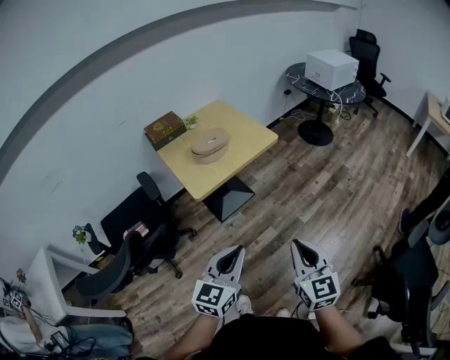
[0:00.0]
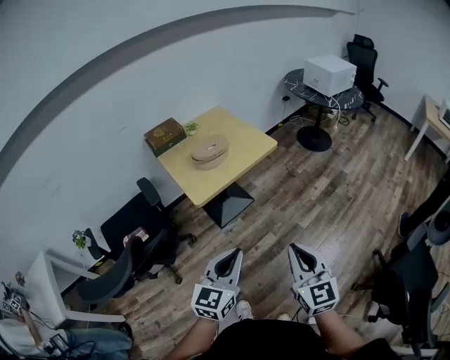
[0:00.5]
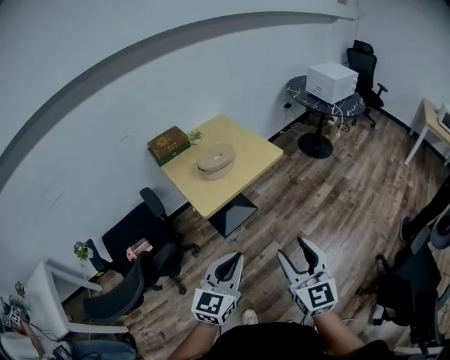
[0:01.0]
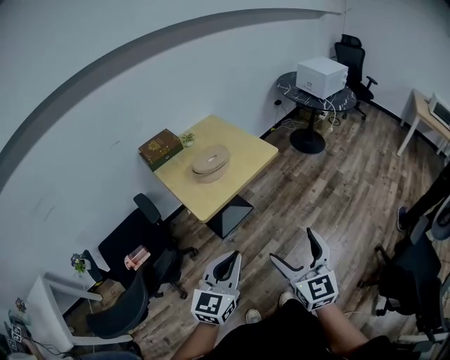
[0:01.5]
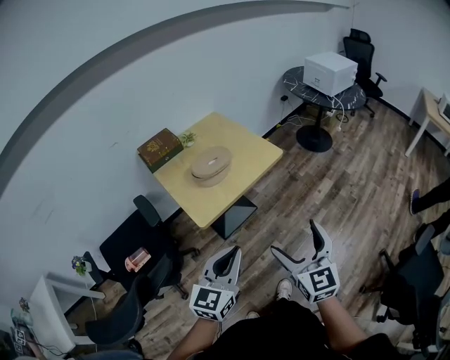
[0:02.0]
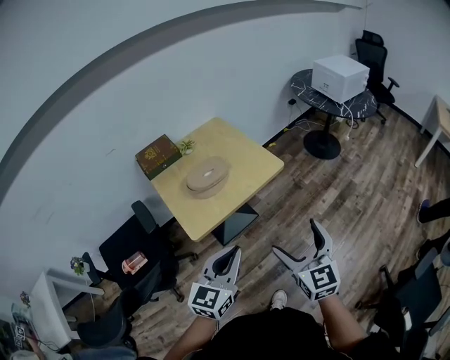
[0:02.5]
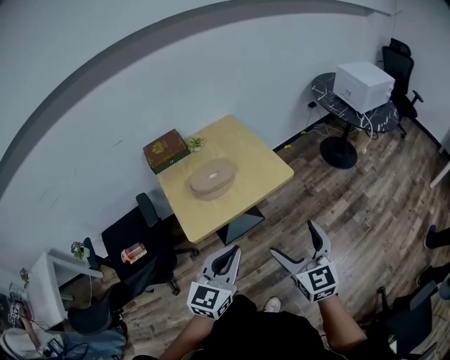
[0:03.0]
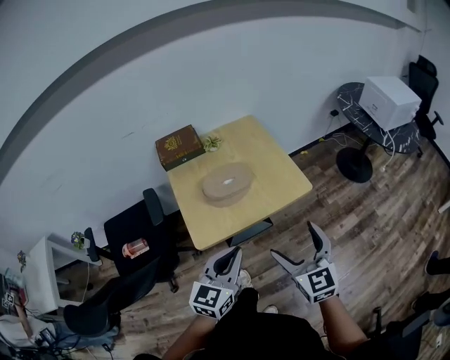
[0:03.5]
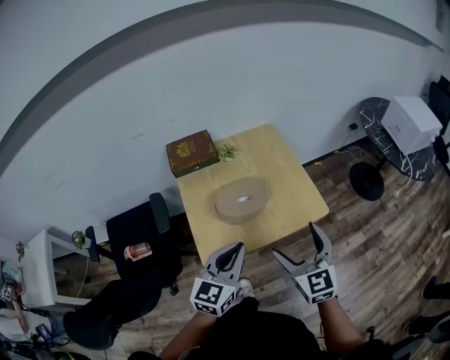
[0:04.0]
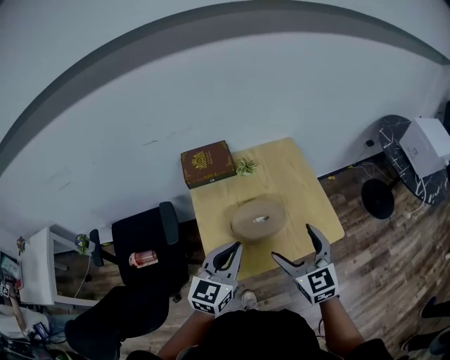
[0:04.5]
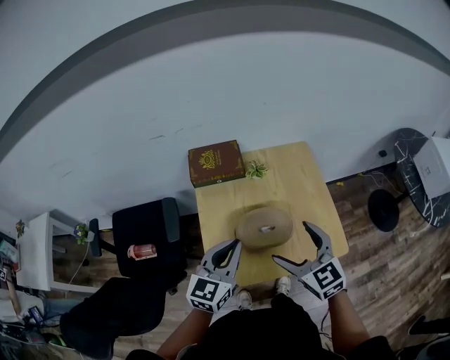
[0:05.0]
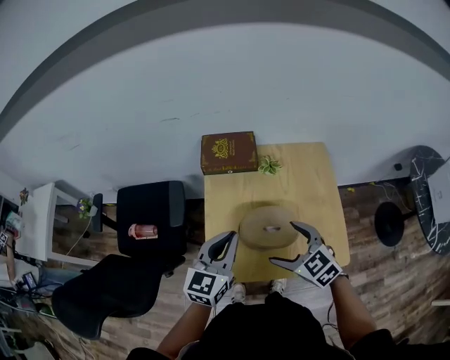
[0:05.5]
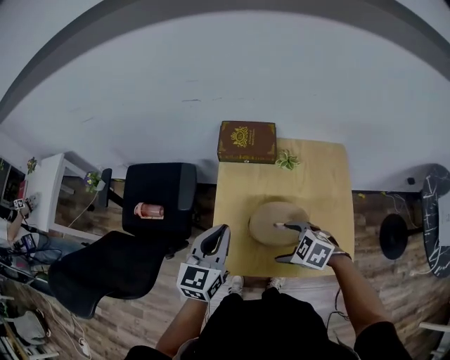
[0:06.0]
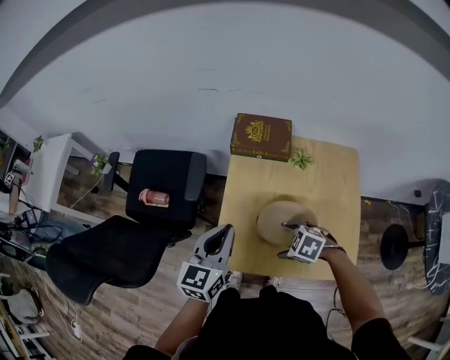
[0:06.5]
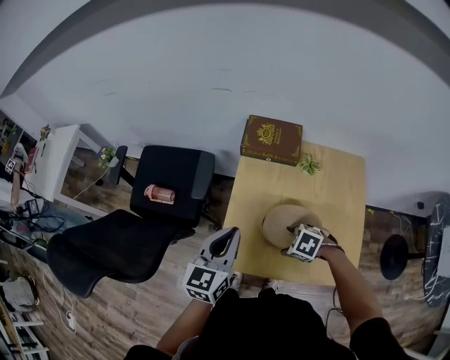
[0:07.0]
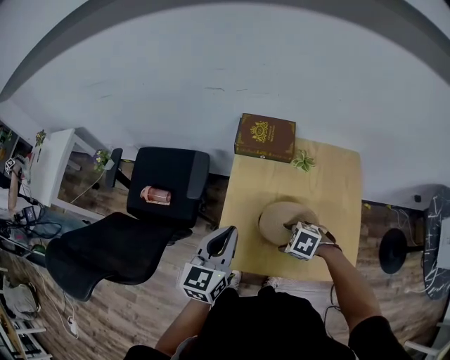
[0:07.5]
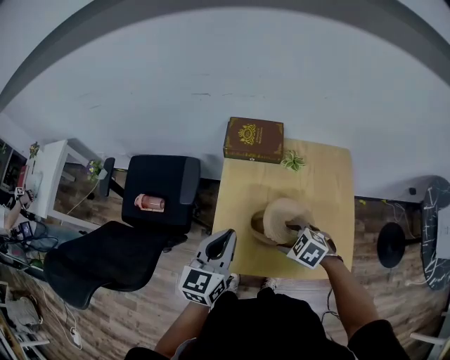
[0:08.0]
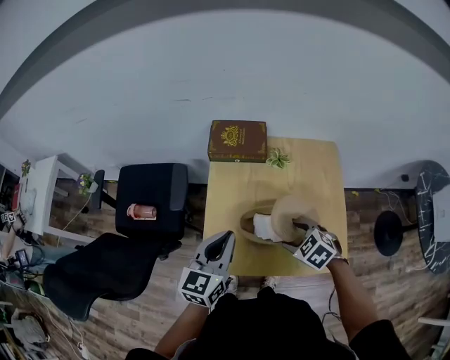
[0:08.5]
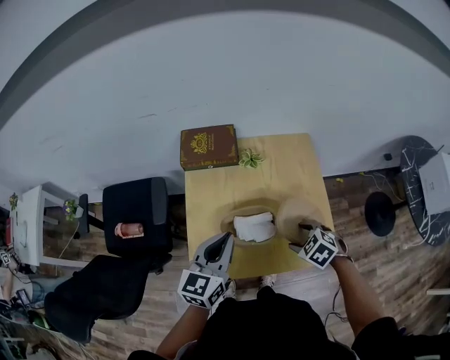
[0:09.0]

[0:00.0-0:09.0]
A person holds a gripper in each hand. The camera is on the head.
0:00.0 to 0:02.0: The two grippers go approximately 15 cm forward and to the left. The right gripper opens.
0:02.0 to 0:04.5: The right gripper shifts by roughly 40 cm, and rotates roughly 30 degrees, while the left gripper moves some 35 cm, and swivels some 20 degrees.
0:04.5 to 0:07.0: The left gripper ends up some 10 cm from where it was, and rotates roughly 30 degrees. Meanwhile the right gripper heads downward, covering some 20 cm, and tilts its fingers roughly 60 degrees downward.
0:07.0 to 0:09.0: The right gripper changes place by roughly 15 cm, and swivels about 30 degrees. The left gripper ends up about 10 cm from where it was.

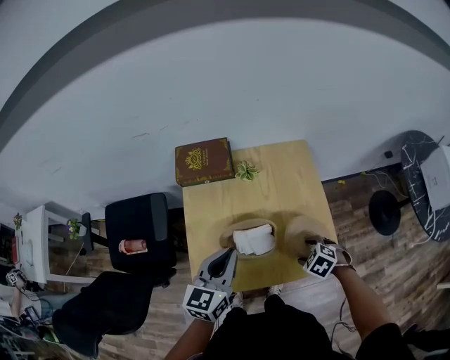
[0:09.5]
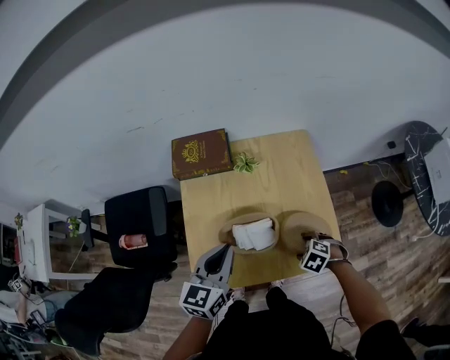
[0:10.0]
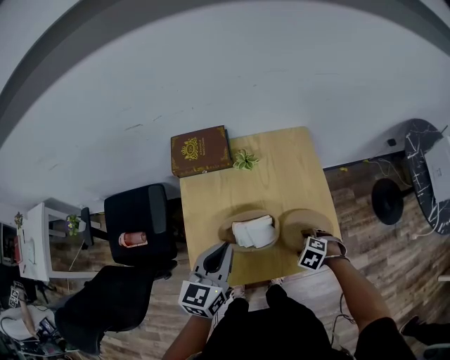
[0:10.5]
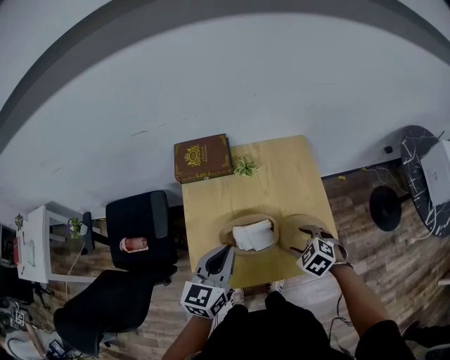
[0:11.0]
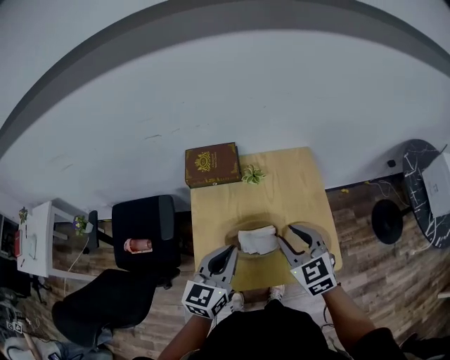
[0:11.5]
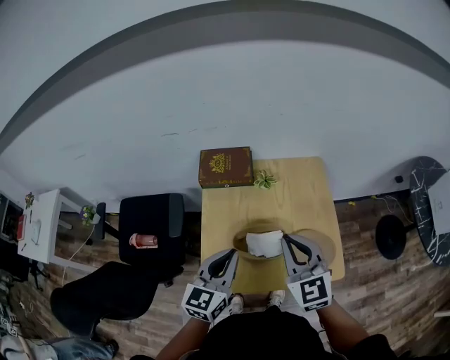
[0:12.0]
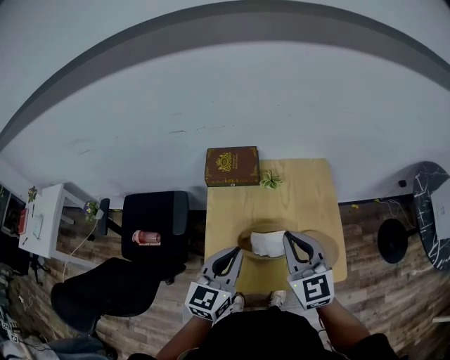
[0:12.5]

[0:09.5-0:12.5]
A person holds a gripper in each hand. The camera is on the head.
0:09.5 to 0:11.0: The right gripper moves some 5 cm.
0:11.0 to 0:12.5: The left gripper goes some 5 cm upward, while the right gripper goes some 25 cm upward and to the left, tilts its fingers approximately 50 degrees upward, and closes.

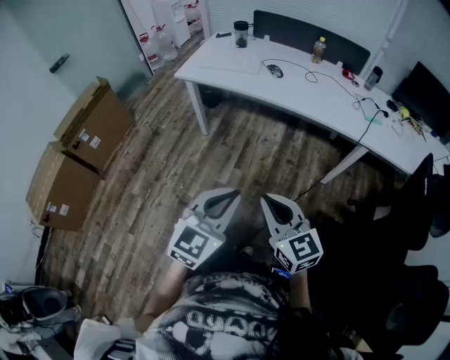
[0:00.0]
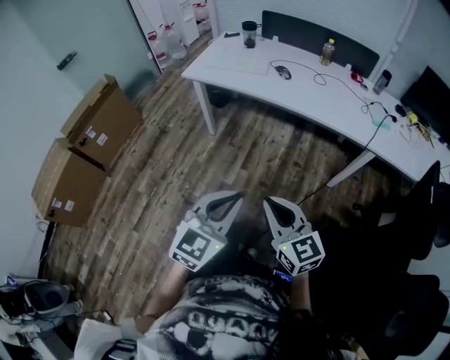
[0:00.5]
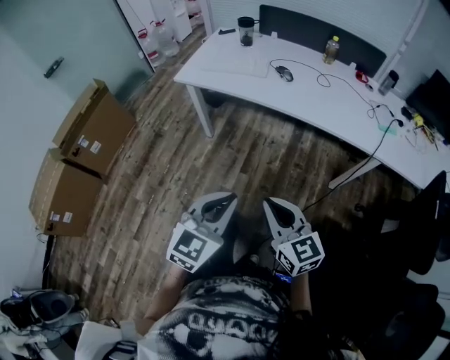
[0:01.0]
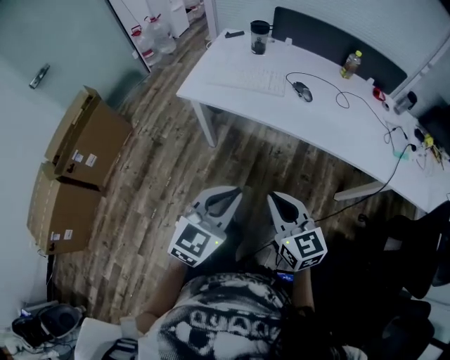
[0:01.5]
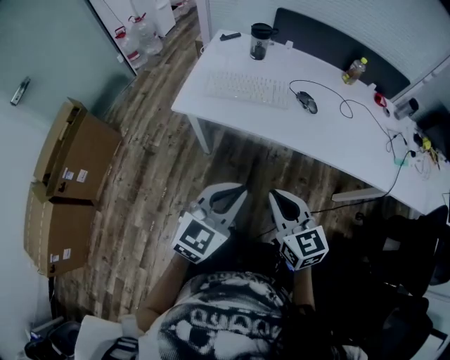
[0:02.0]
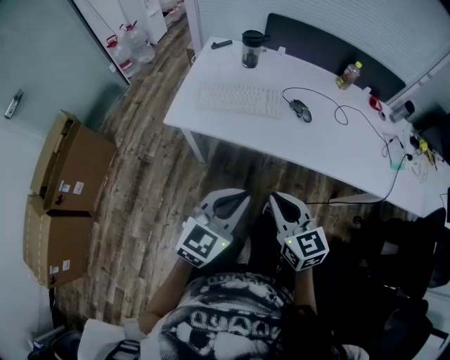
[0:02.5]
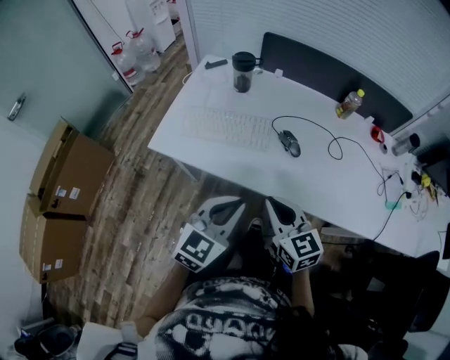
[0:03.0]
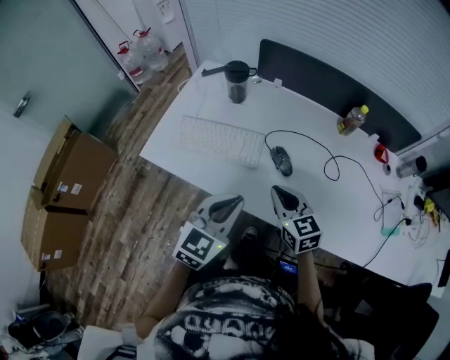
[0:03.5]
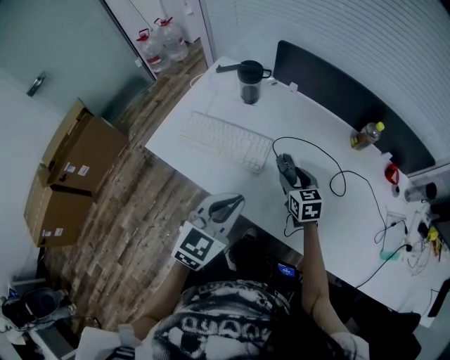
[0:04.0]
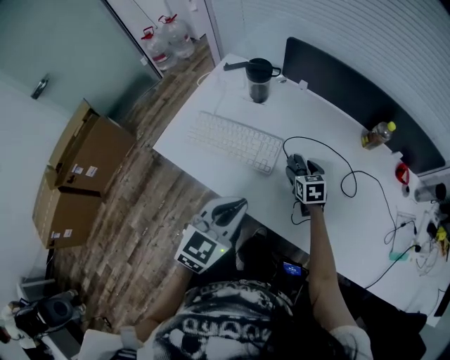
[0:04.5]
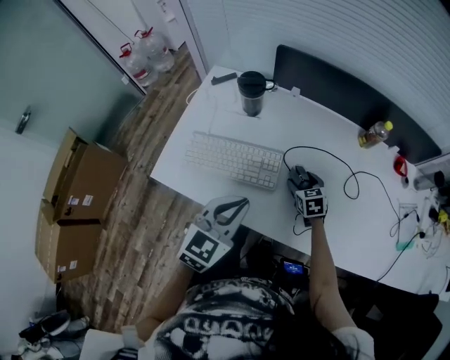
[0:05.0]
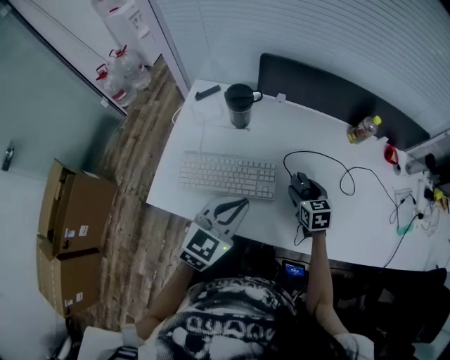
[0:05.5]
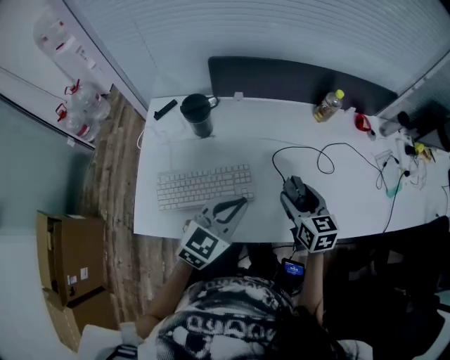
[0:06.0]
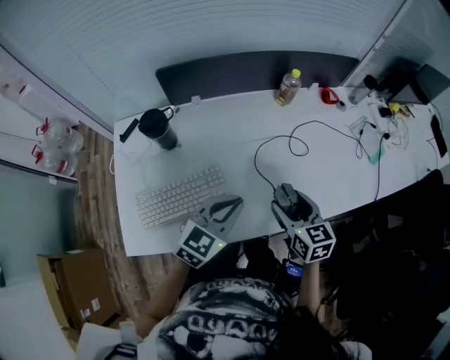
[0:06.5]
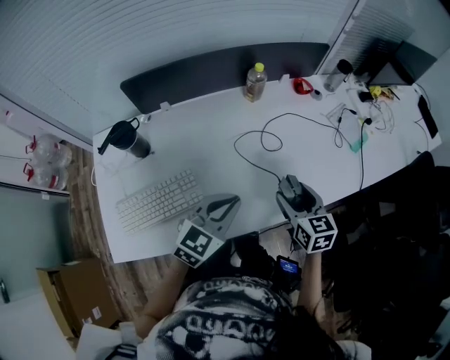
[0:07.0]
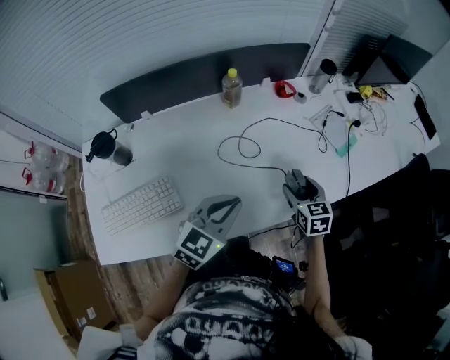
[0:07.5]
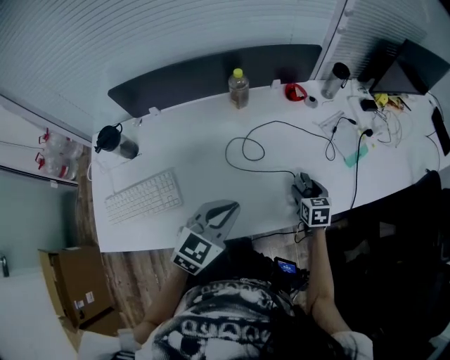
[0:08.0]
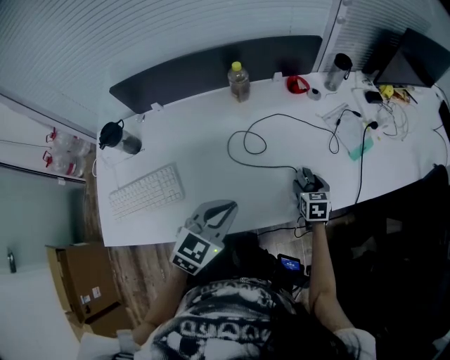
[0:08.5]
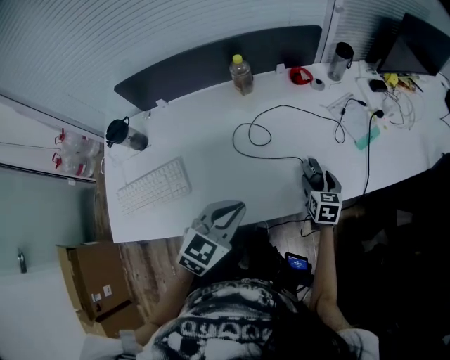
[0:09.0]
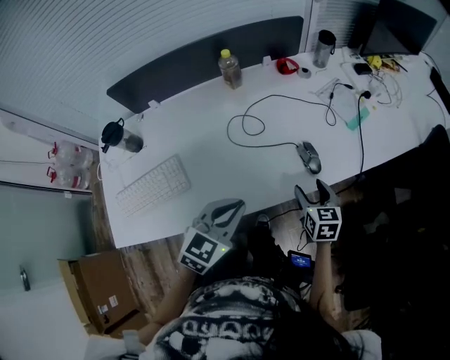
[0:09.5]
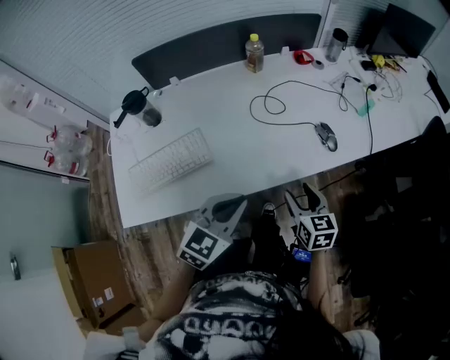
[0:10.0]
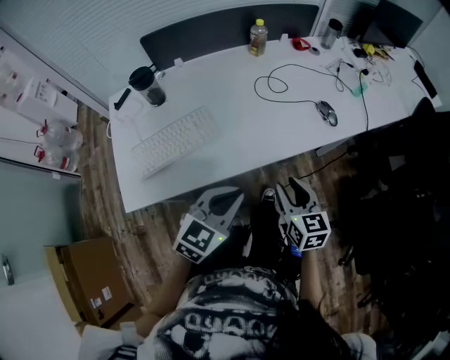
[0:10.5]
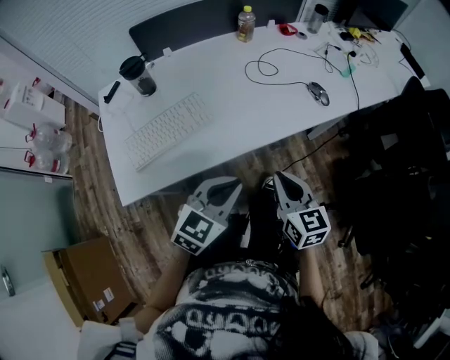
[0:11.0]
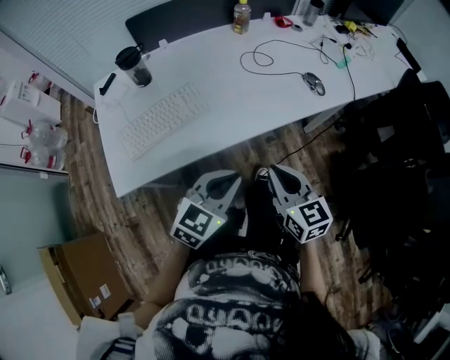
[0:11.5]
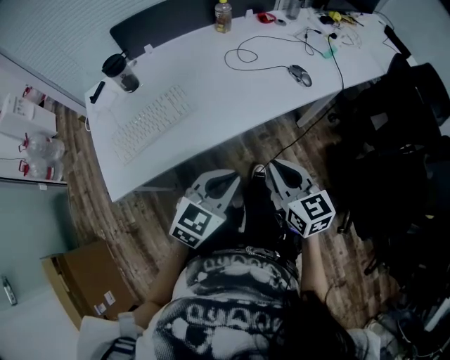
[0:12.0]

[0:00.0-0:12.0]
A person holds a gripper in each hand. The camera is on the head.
0:00.0 to 0:02.0: The pair of grippers is taken forward, roughly 40 cm.
0:02.0 to 0:04.0: Both grippers move forward and to the right, about 40 cm. The right gripper opens up.
0:04.0 to 0:06.0: The left gripper ends up about 10 cm from where it was, and rotates roughly 30 degrees; the right gripper travels upward by about 10 cm, and changes its angle by approximately 30 degrees.
0:06.0 to 0:08.0: The left gripper is displaced to the right by approximately 25 cm. Meanwhile the right gripper travels to the right and downward by roughly 40 cm, and turns by roughly 20 degrees.
0:08.0 to 0:10.0: The right gripper shifts about 30 cm backward, upward and to the left. The left gripper shifts about 20 cm backward.
0:10.0 to 0:12.0: The right gripper travels backward and upward by approximately 20 cm, and closes; the left gripper moves backward, approximately 15 cm.

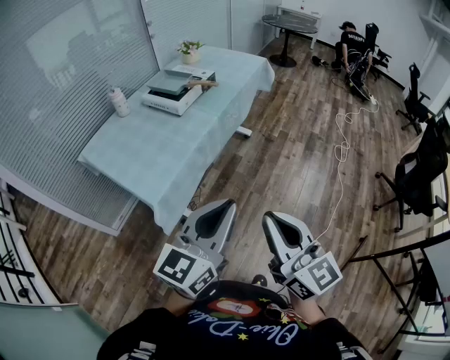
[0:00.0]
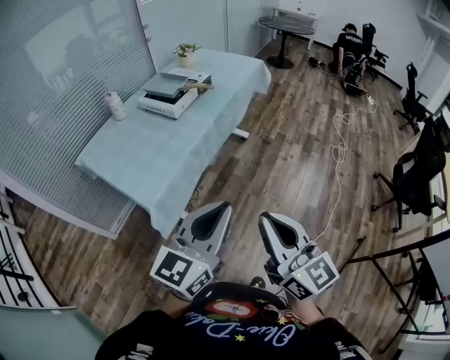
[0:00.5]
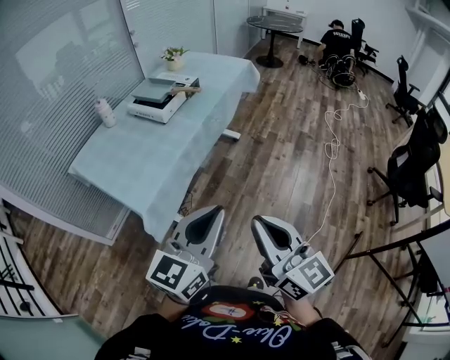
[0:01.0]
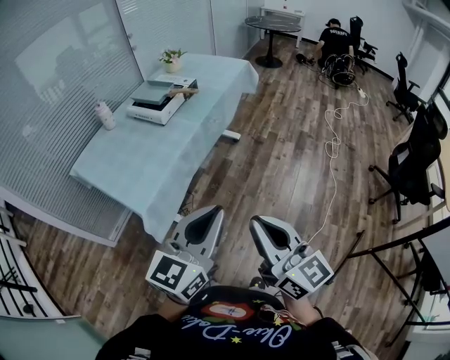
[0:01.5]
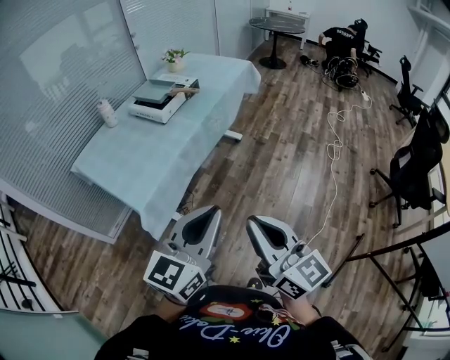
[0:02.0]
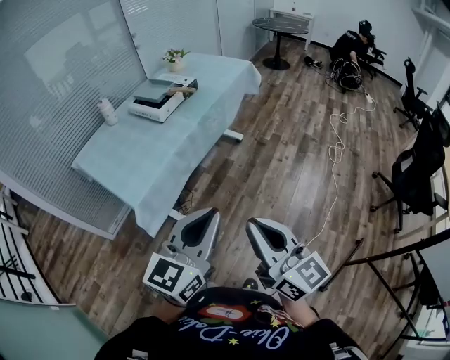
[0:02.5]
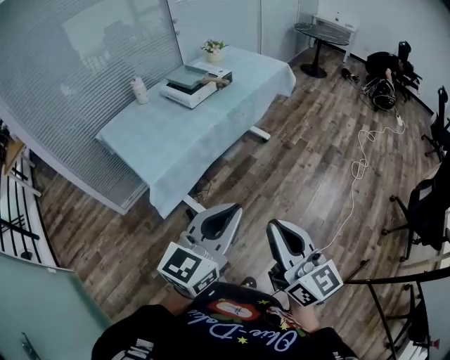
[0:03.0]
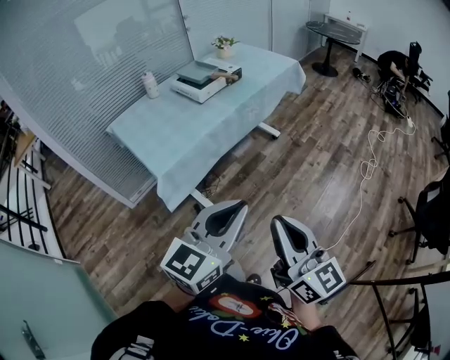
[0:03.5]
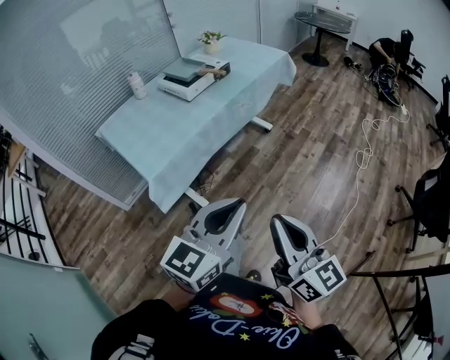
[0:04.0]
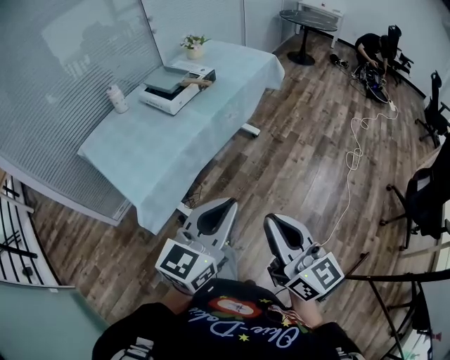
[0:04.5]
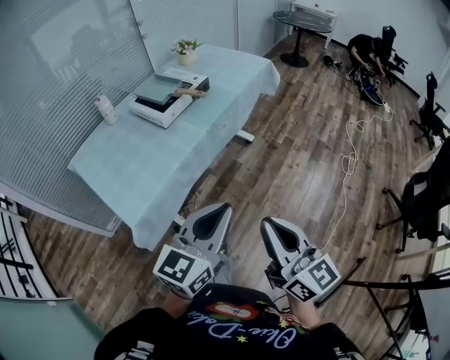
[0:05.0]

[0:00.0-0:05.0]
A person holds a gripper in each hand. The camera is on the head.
0:00.0 to 0:02.5: Both grippers move to the right, approximately 10 cm.
0:02.5 to 0:05.0: Both grippers move forward, some 15 cm.
